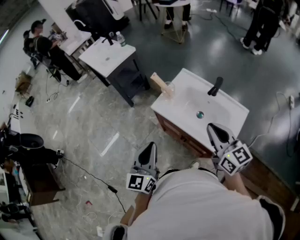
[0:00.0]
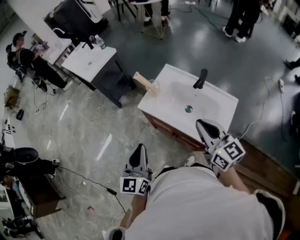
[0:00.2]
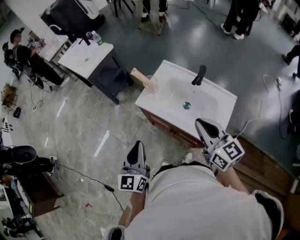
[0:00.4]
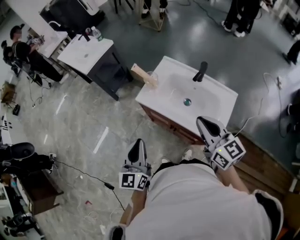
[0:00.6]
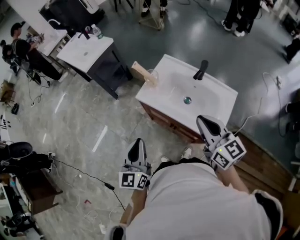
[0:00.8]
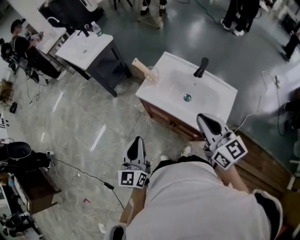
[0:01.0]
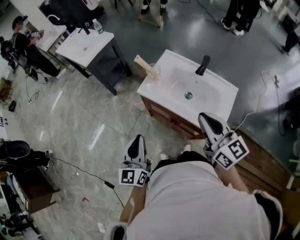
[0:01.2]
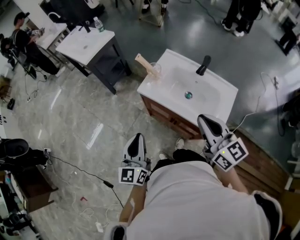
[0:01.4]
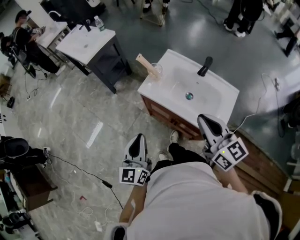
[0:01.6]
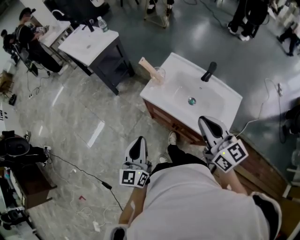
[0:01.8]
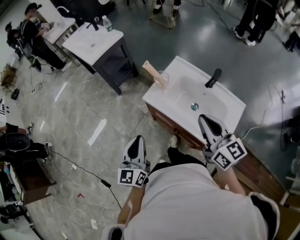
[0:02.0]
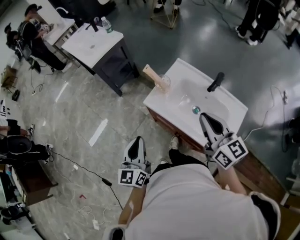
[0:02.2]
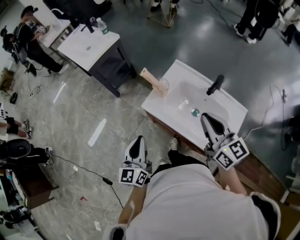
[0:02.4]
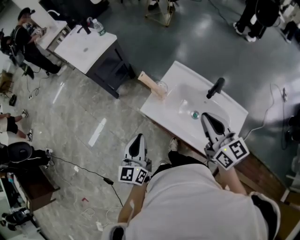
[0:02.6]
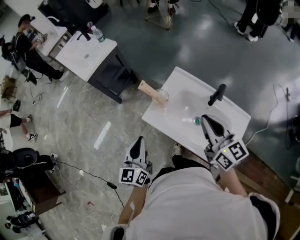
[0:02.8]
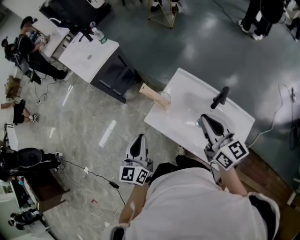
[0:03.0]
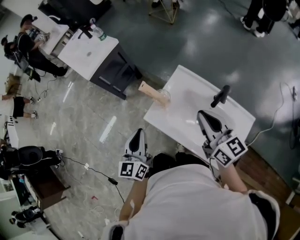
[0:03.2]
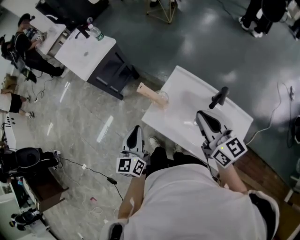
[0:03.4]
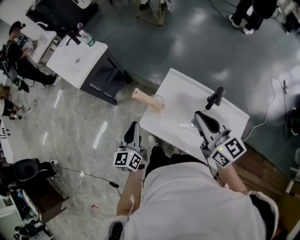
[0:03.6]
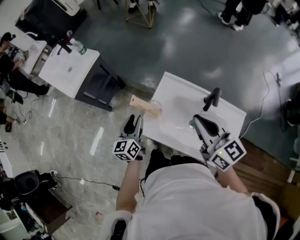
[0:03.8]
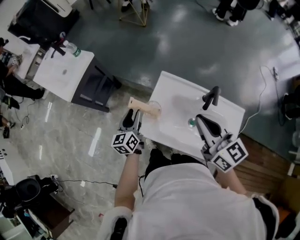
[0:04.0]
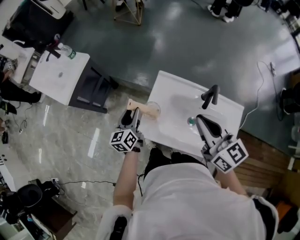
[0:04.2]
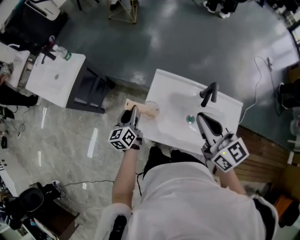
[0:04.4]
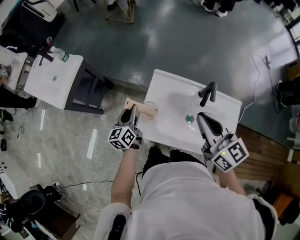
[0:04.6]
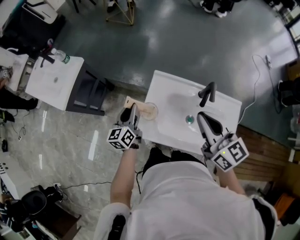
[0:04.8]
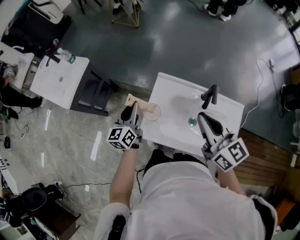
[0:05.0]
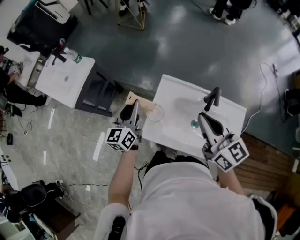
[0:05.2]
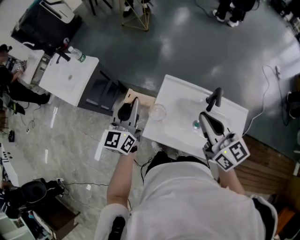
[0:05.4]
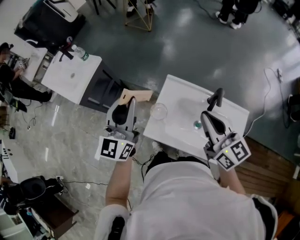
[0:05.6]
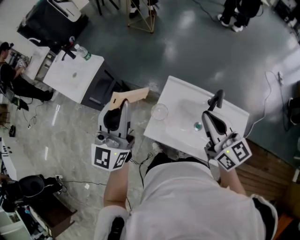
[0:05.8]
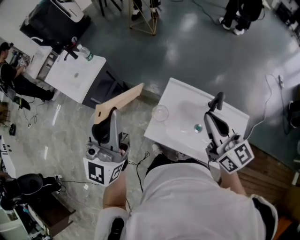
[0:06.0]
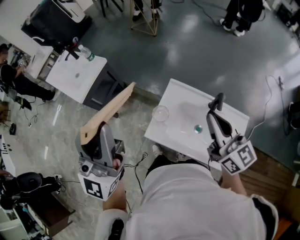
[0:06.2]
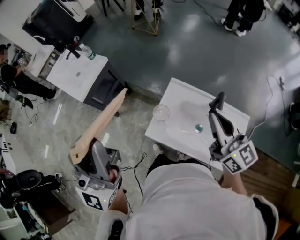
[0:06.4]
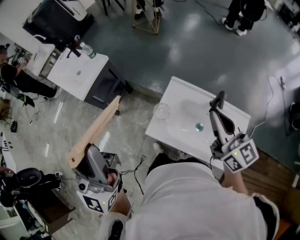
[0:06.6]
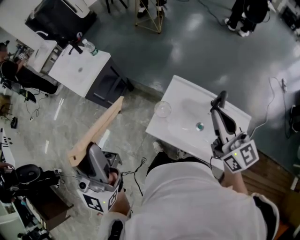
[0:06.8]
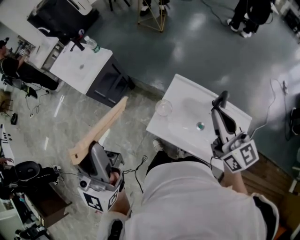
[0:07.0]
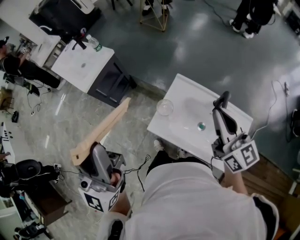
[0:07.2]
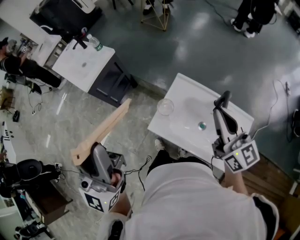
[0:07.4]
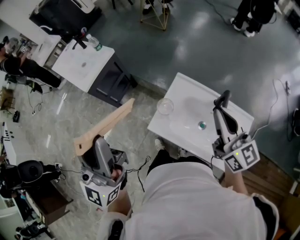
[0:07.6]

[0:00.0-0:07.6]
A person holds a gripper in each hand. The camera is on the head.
0:00.0 to 0:01.6: The right gripper changes place by some 5 cm, while the left gripper ends up approximately 5 cm from where it was.
0:01.6 to 0:03.0: Both grippers travel together forward, roughly 20 cm.
0:03.0 to 0:04.6: The left gripper is displaced forward and downward by roughly 25 cm, turns by roughly 20 degrees, and opens, then closes once more.
0:04.6 to 0:06.0: The left gripper shifts about 35 cm upward, and tips its fingers upward by roughly 40 degrees.
0:06.0 to 0:07.6: The left gripper moves backward, approximately 10 cm.

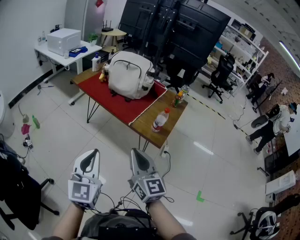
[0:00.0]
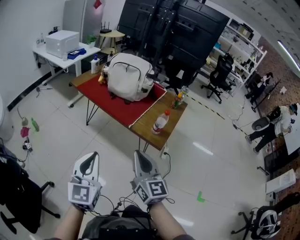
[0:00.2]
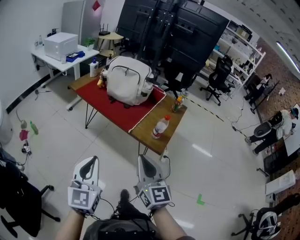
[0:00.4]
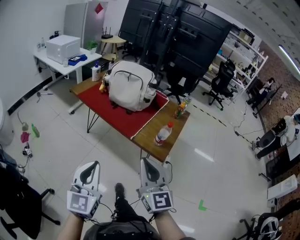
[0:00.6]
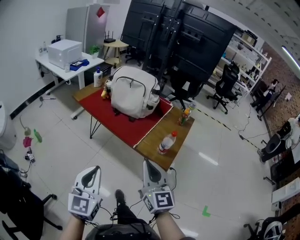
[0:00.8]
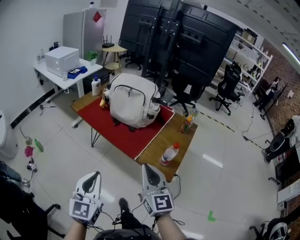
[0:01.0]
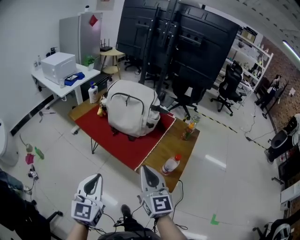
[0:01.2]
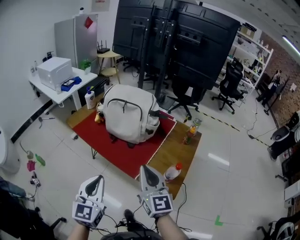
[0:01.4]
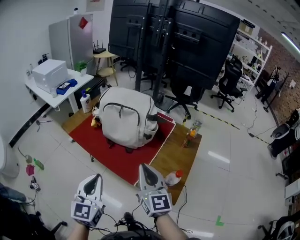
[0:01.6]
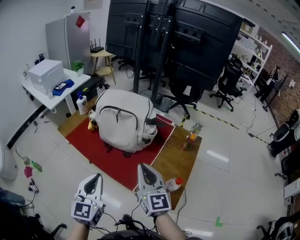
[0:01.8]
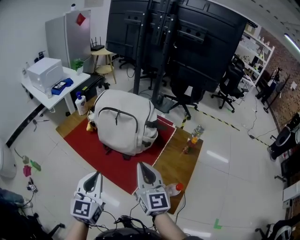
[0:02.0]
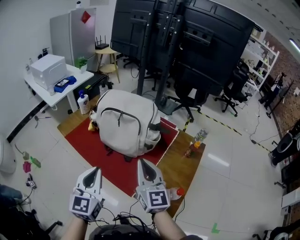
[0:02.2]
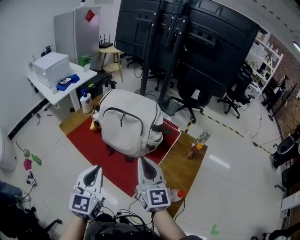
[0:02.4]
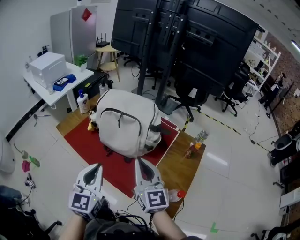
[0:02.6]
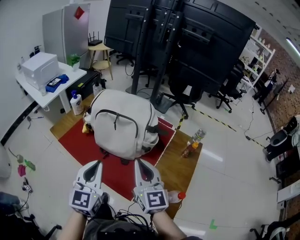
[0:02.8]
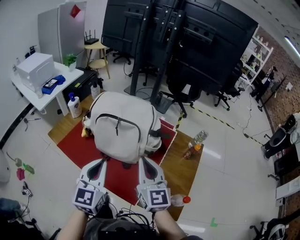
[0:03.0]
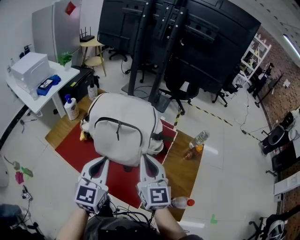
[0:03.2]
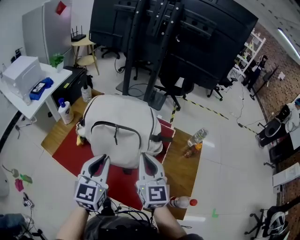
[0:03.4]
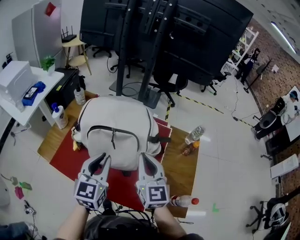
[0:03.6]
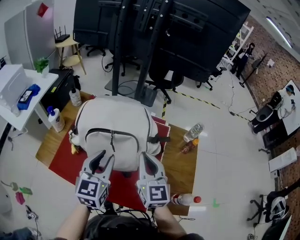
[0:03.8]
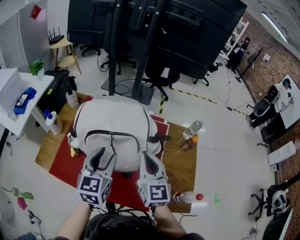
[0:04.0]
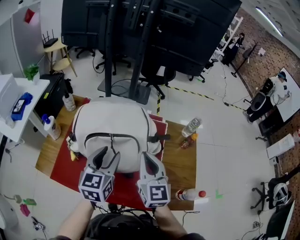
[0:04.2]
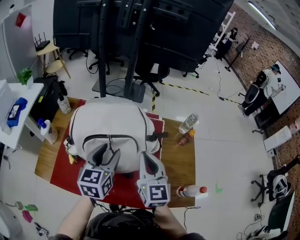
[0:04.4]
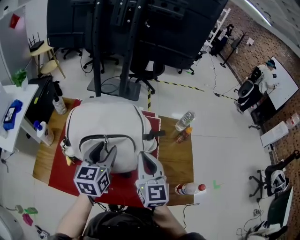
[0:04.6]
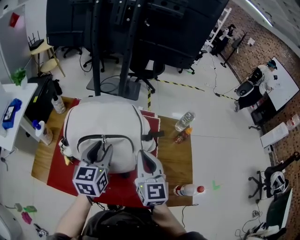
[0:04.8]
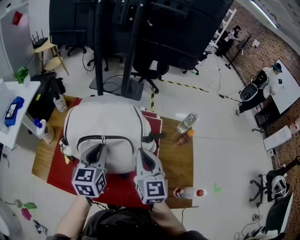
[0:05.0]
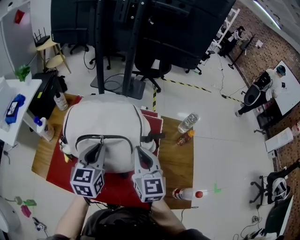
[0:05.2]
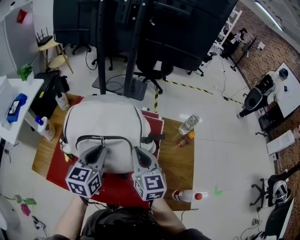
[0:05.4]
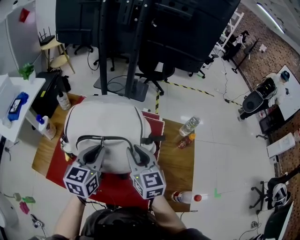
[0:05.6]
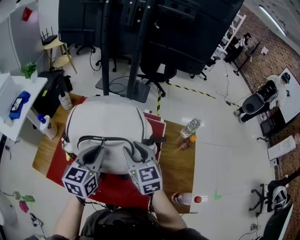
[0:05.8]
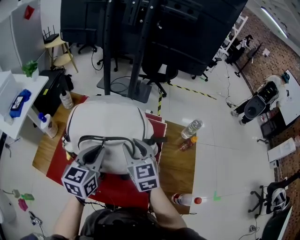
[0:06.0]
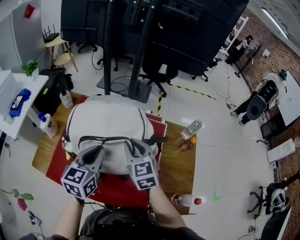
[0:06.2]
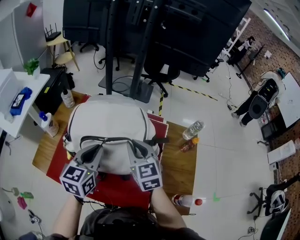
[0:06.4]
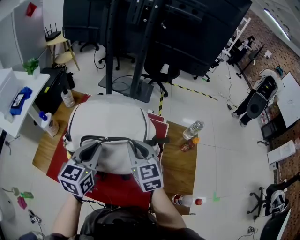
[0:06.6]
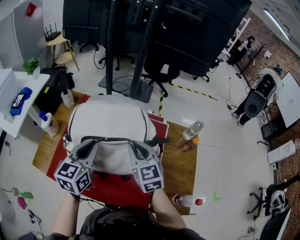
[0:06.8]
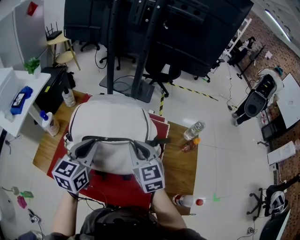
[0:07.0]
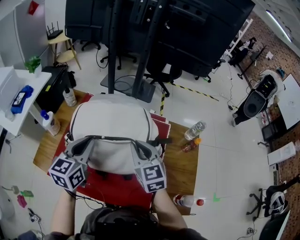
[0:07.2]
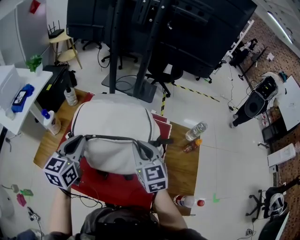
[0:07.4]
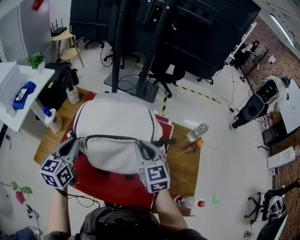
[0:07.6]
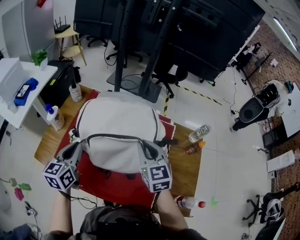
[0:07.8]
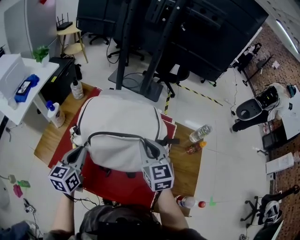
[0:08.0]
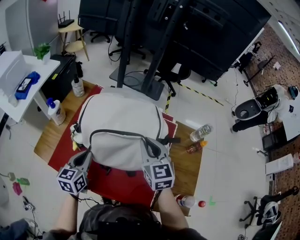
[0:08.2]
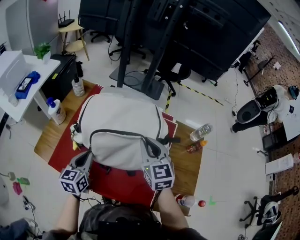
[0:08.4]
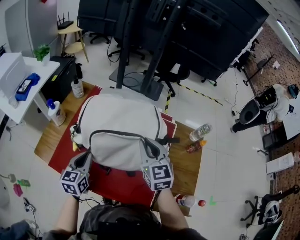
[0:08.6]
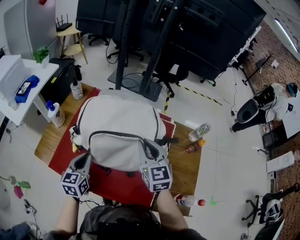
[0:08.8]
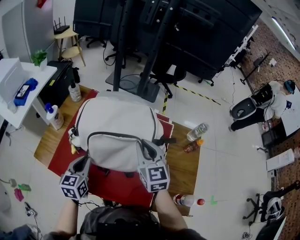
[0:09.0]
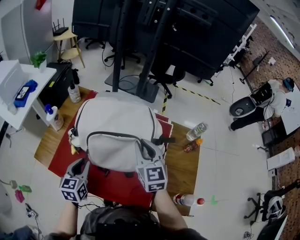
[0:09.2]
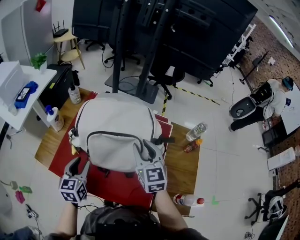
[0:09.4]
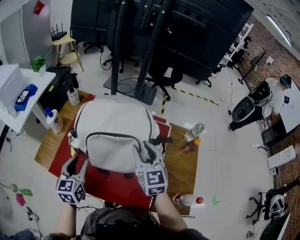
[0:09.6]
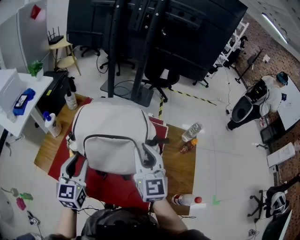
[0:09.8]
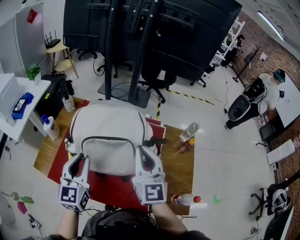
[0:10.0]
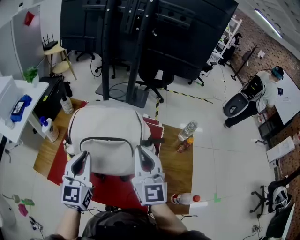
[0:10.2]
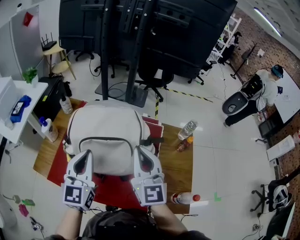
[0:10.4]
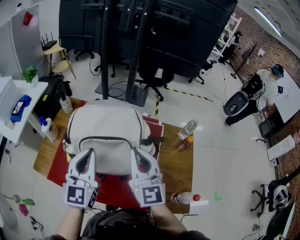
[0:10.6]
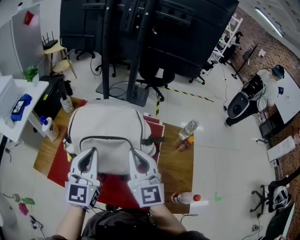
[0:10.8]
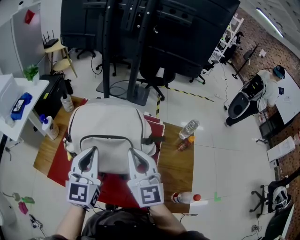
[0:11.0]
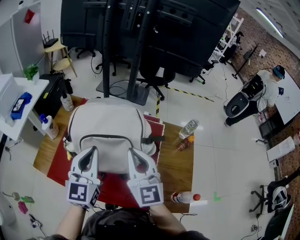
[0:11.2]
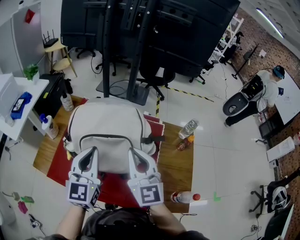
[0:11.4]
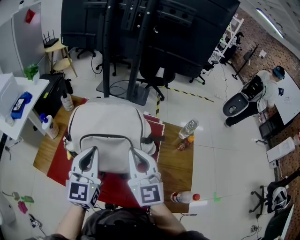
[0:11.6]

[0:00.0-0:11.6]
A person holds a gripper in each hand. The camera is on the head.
0:00.0 to 0:01.4: The two grippers go approximately 30 cm forward.
0:01.4 to 0:02.8: Both grippers move forward, about 25 cm.
0:02.8 to 0:04.4: The right gripper changes place by approximately 15 cm, and swivels about 30 degrees; the left gripper changes place by roughly 25 cm, rotates about 30 degrees, and opens.
0:04.4 to 0:05.8: The right gripper travels forward by approximately 5 cm, changes its angle by some 20 degrees, and opens up. Meanwhile the left gripper closes up.
0:05.8 to 0:07.2: The right gripper closes its fingers. Meanwhile the left gripper shifts some 5 cm to the left.
0:07.2 to 0:08.8: The left gripper goes approximately 15 cm downward, to the left and backward.
0:08.8 to 0:10.2: The right gripper shifts about 15 cm upward and backward, and swivels roughly 20 degrees. Meanwhile the left gripper is displaced upward and to the right by some 20 cm, turns by roughly 20 degrees, and opens, then closes again.
0:10.2 to 0:11.6: The grippers move only a little.

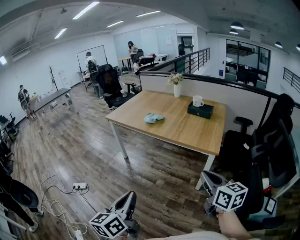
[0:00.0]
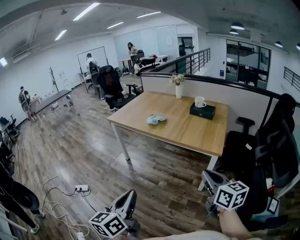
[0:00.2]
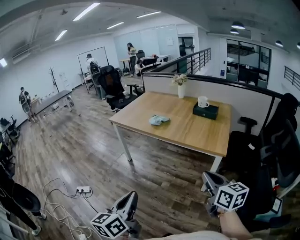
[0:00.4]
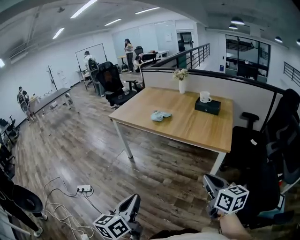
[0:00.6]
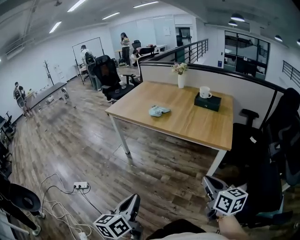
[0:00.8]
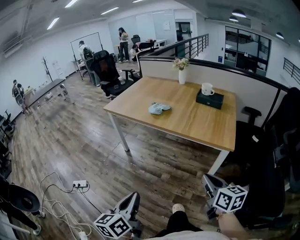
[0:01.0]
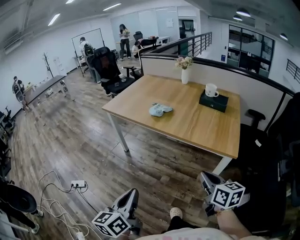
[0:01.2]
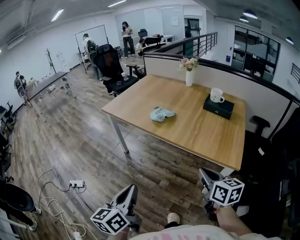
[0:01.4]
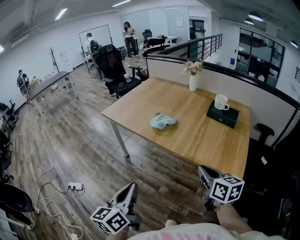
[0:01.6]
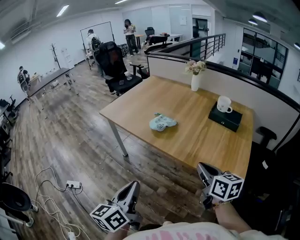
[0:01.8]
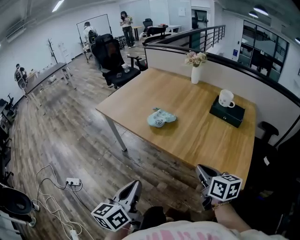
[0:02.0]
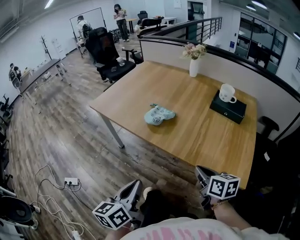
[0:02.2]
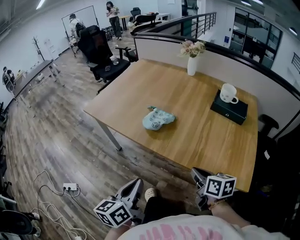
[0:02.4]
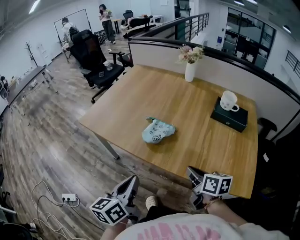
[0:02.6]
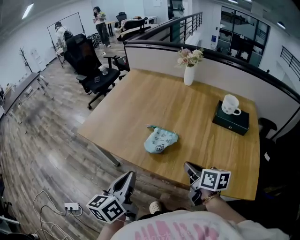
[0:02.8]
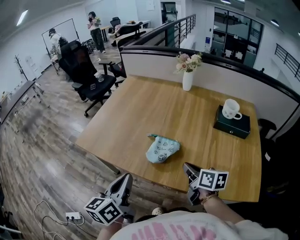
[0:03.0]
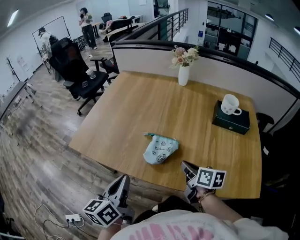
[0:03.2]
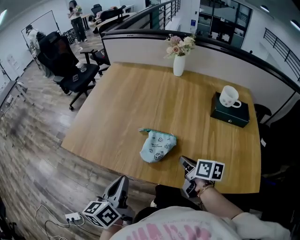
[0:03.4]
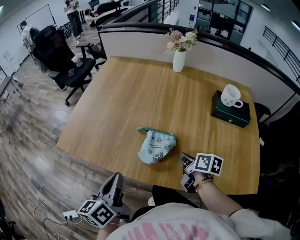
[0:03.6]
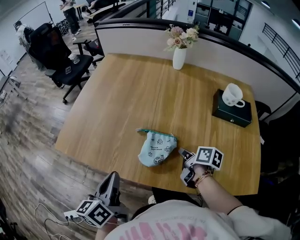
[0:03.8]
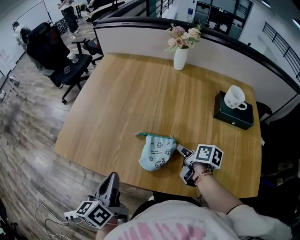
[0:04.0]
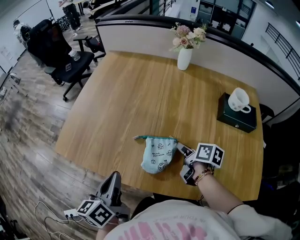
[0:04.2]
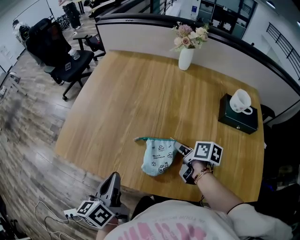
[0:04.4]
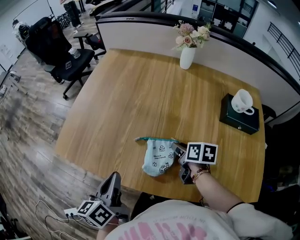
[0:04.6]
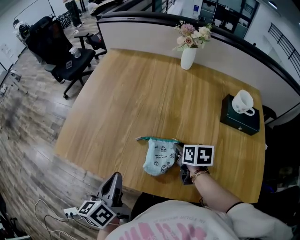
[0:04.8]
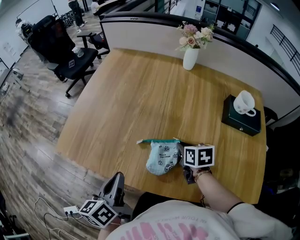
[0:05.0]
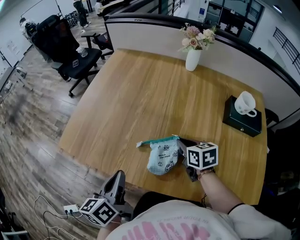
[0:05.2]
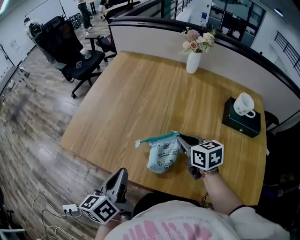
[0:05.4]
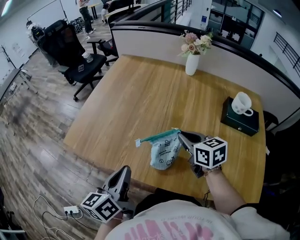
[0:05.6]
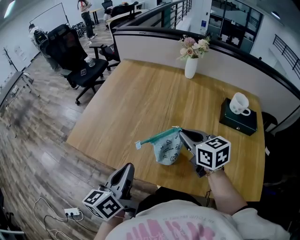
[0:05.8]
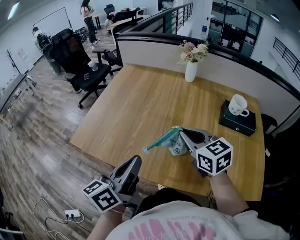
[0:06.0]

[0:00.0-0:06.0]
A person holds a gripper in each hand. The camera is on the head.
0:00.0 to 0:01.6: Both grippers move forward, about 30 cm.
0:01.6 to 0:03.0: Both grippers travel together forward, approximately 35 cm. The right gripper changes its angle by some 20 degrees.
0:03.0 to 0:04.4: Both grippers travel together forward and downward, some 15 cm. The right gripper rotates some 20 degrees, and opens up.
0:04.4 to 0:06.0: The right gripper moves upward, some 20 cm, twists approximately 60 degrees counterclockwise, seen from behind, and closes its fingers, while the left gripper heads upward and to the right, covering roughly 10 cm, and rotates approximately 20 degrees.
